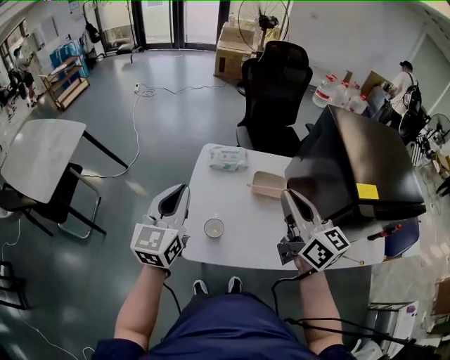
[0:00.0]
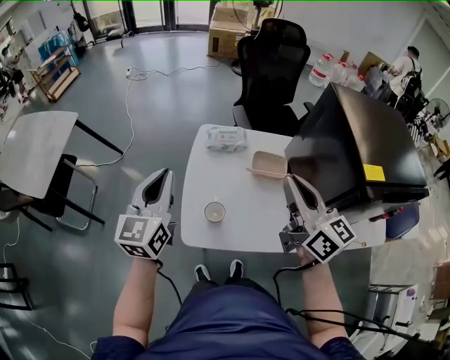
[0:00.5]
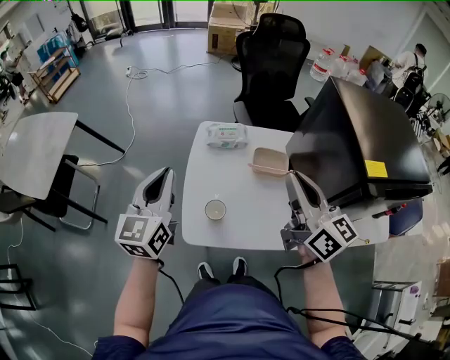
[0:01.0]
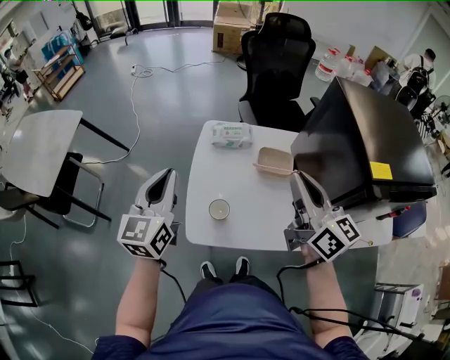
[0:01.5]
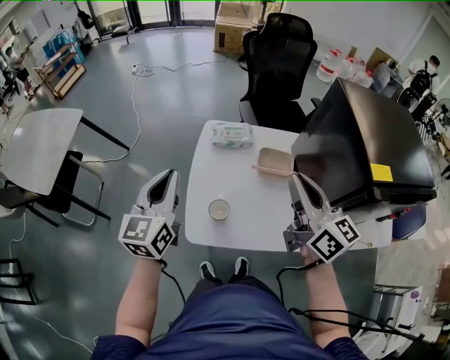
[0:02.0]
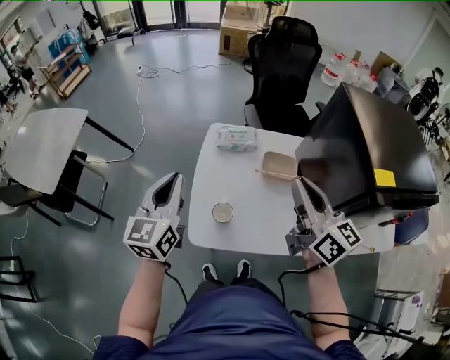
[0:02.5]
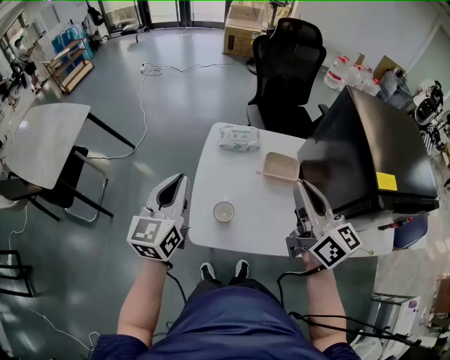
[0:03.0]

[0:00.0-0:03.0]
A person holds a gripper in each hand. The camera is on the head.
0:00.0 to 0:03.0: The grippers move only a little.

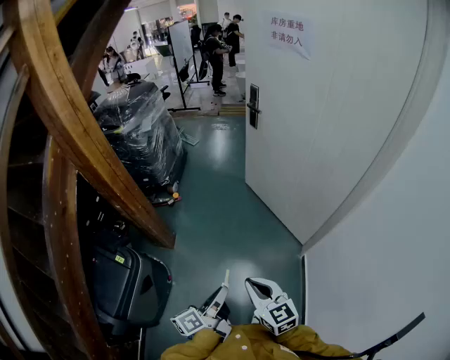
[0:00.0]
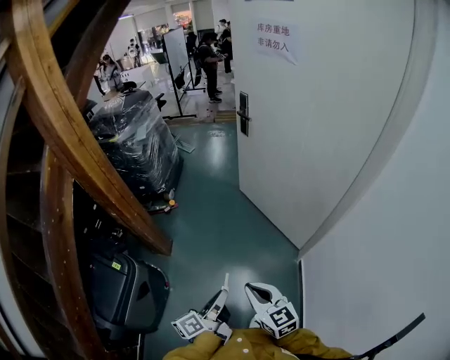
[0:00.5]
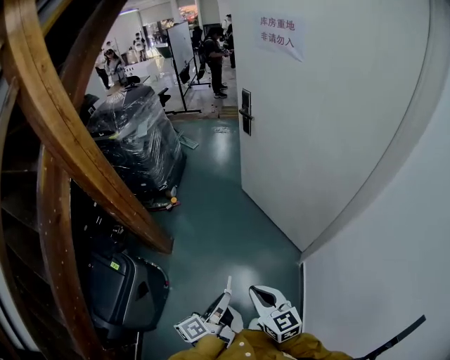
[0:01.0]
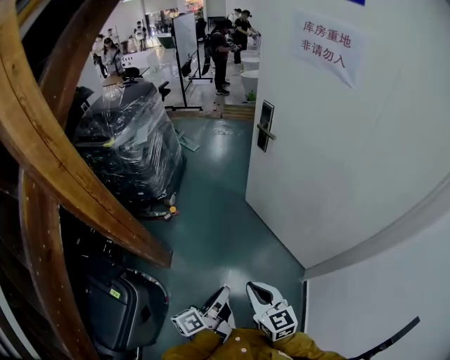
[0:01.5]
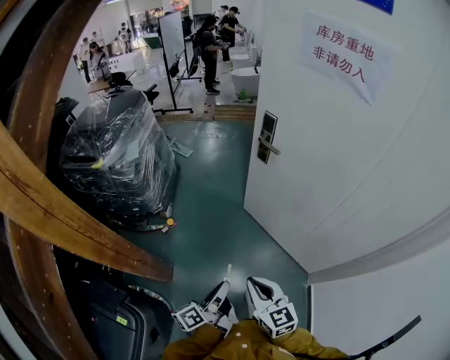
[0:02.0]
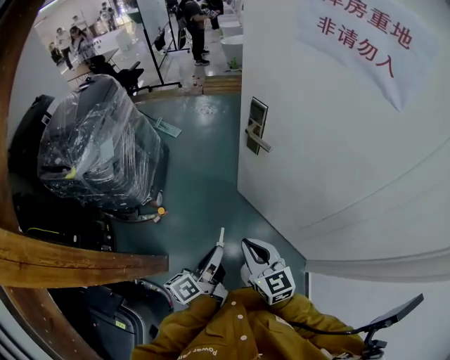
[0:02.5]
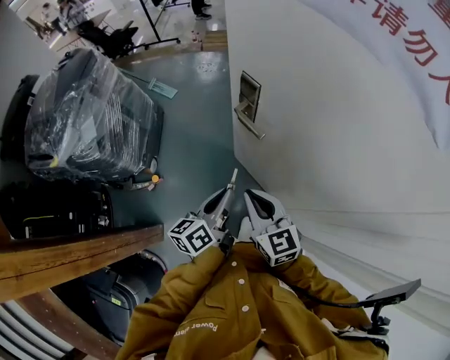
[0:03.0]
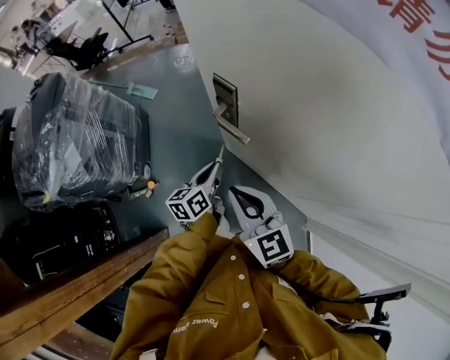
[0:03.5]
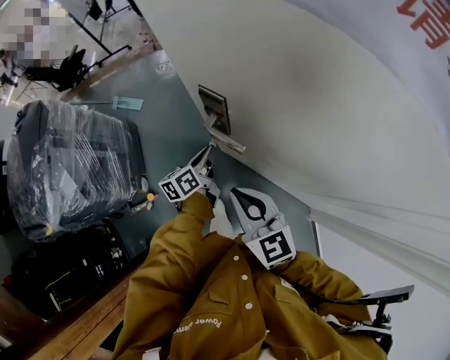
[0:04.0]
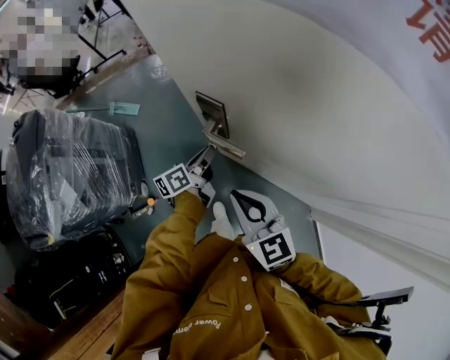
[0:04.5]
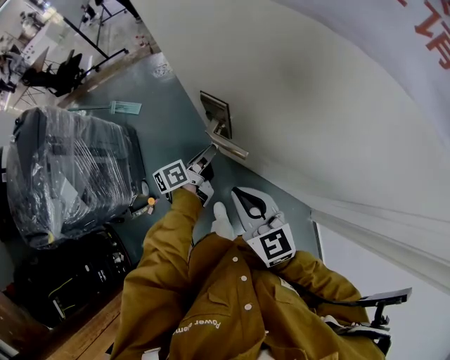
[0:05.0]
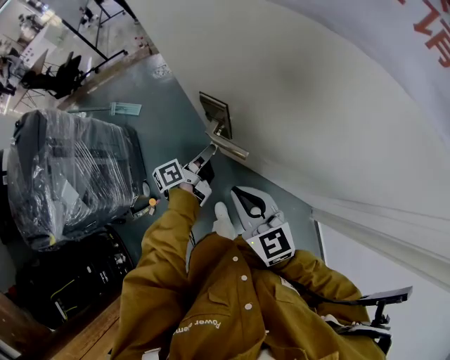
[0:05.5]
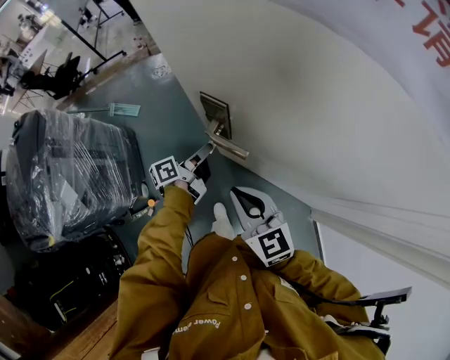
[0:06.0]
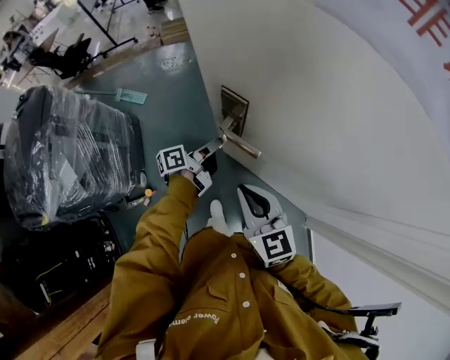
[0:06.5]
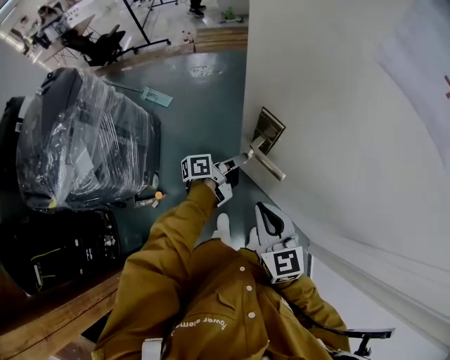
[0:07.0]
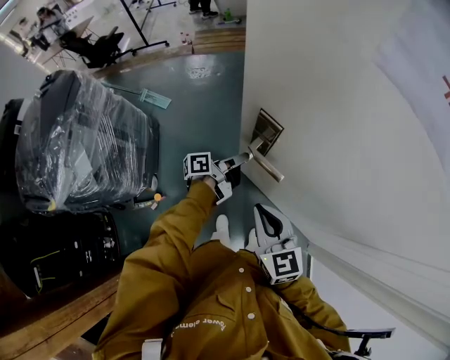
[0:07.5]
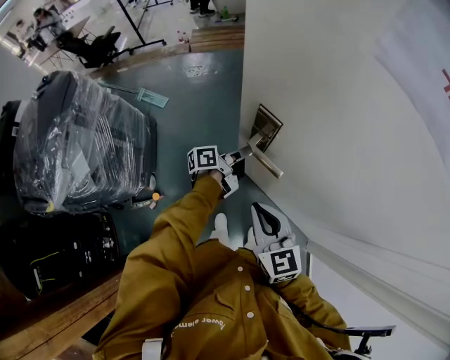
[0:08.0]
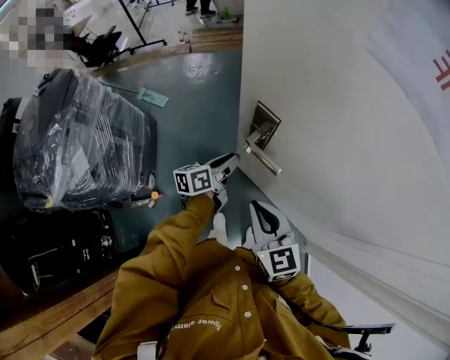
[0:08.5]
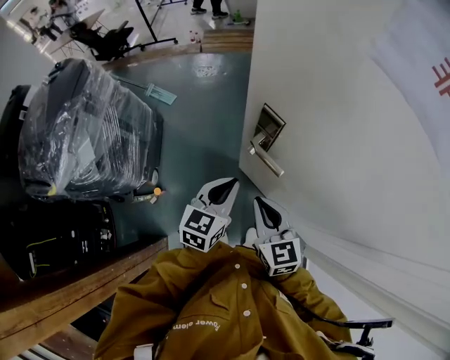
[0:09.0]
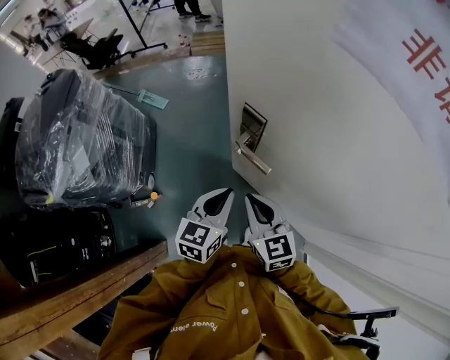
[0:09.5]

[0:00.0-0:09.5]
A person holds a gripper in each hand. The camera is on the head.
0:00.0 to 0:02.0: The grippers both shift forward by about 35 cm.
0:02.0 to 0:04.0: The pair of grippers is taken forward, about 50 cm. The left gripper turns by some 30 degrees.
0:04.0 to 0:05.5: The left gripper rotates approximately 30 degrees.
0:05.5 to 0:07.5: There are only small adjustments of the grippers.
0:07.5 to 0:09.5: The left gripper goes approximately 20 cm backward and upward, and rolls clockwise, seen from behind, by some 60 degrees.

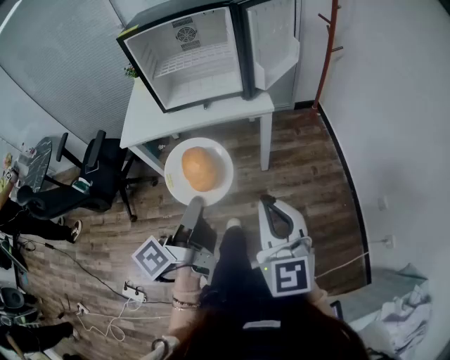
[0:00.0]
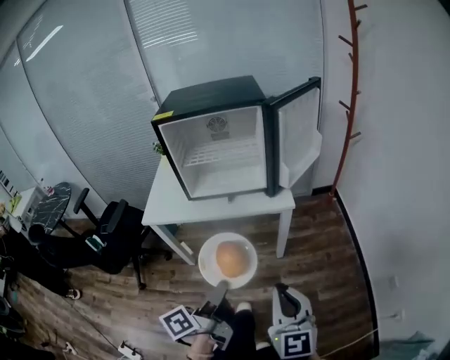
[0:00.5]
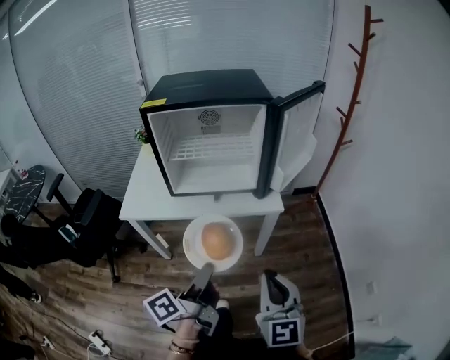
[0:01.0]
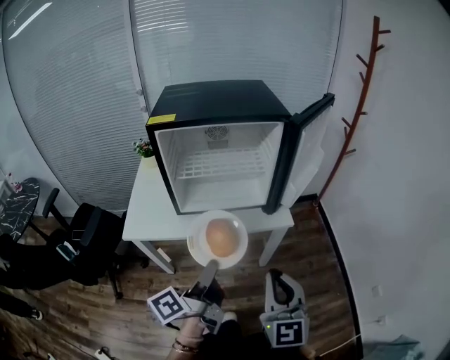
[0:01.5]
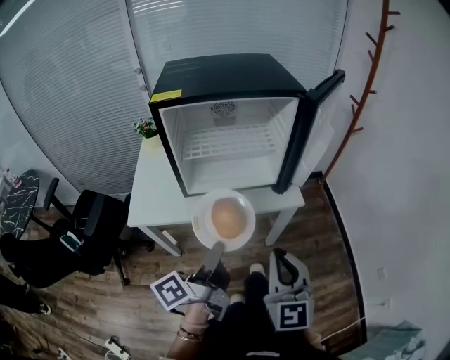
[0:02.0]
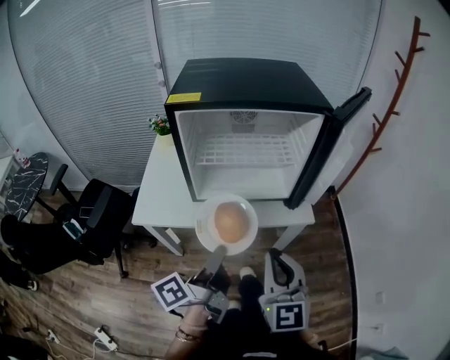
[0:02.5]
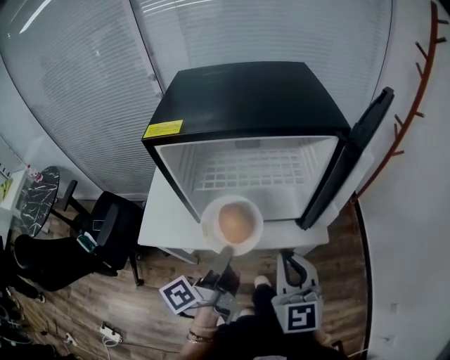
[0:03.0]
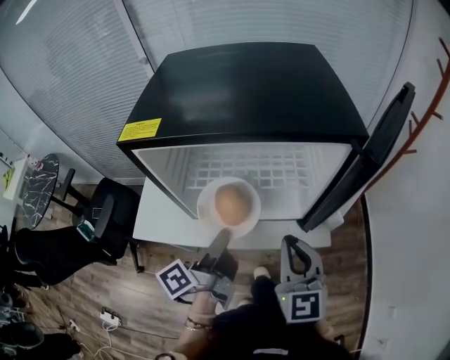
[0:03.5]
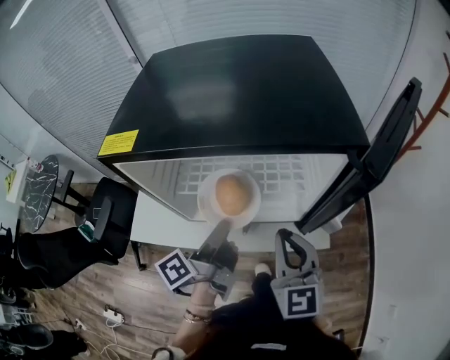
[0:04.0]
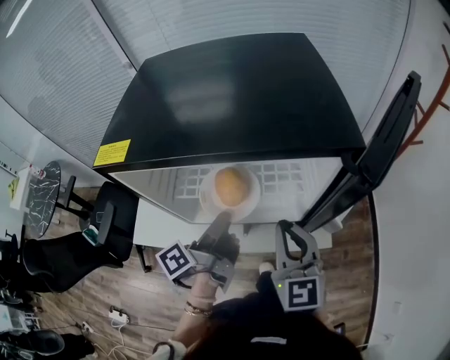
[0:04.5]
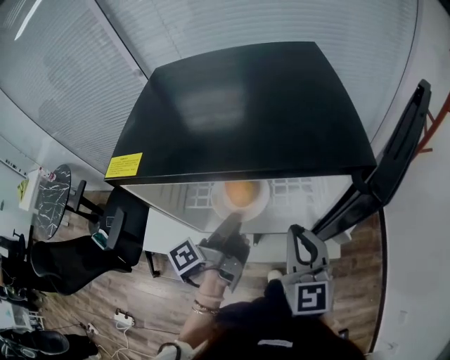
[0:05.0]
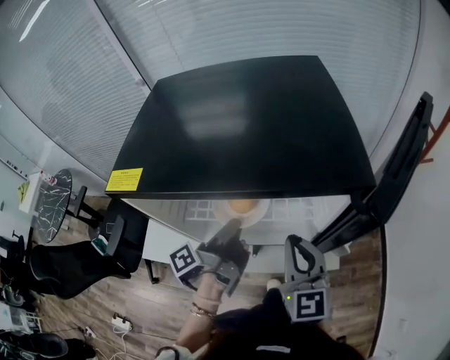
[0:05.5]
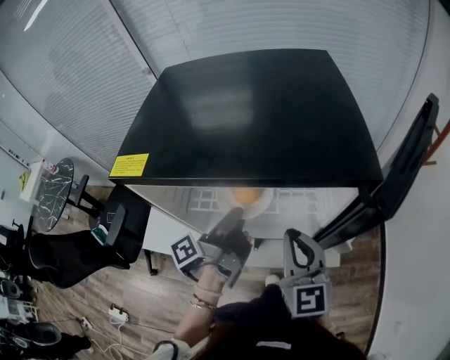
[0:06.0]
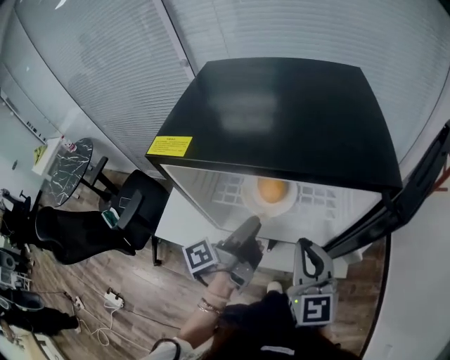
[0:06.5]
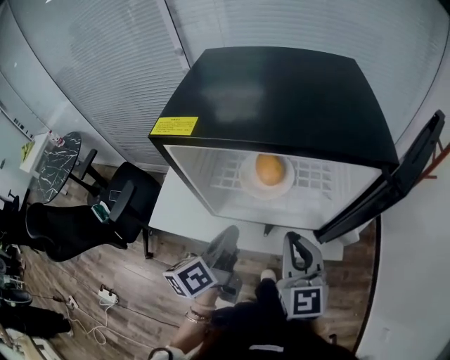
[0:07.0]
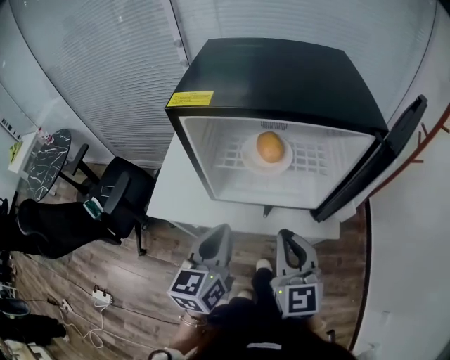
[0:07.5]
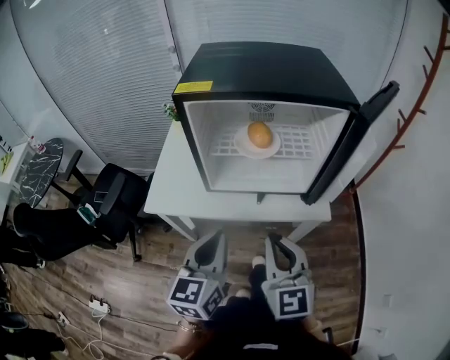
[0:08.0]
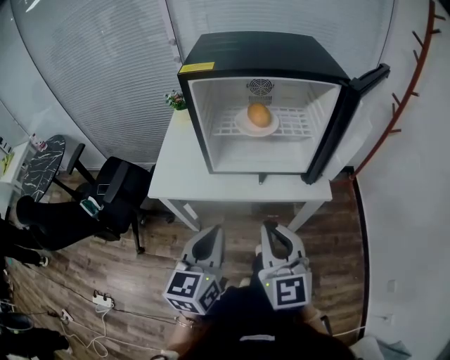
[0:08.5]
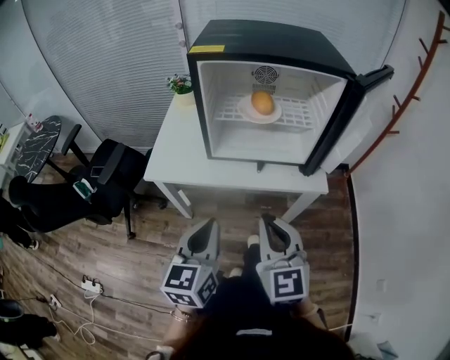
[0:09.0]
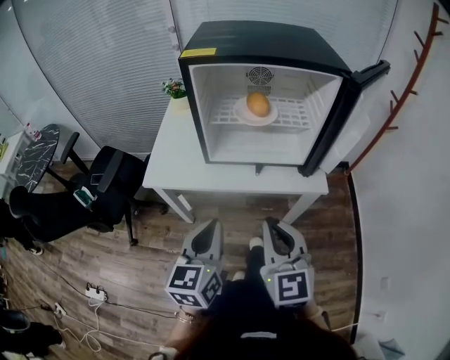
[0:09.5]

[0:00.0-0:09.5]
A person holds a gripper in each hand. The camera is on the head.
0:00.0 to 0:02.0: Both grippers move forward and to the left, some 25 cm.
0:02.0 to 0:04.0: Both grippers move forward, about 25 cm.
0:04.0 to 0:05.5: The left gripper shifts about 5 cm forward.
0:05.5 to 0:07.5: The two grippers go approximately 15 cm backward and to the left. The left gripper rolls clockwise, seen from behind, by some 70 degrees, and opens, then closes again.
0:07.5 to 0:09.5: Both grippers move backward, approximately 15 cm.

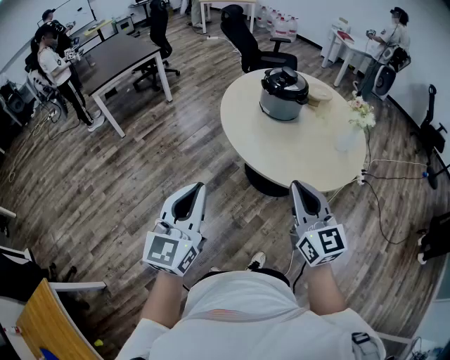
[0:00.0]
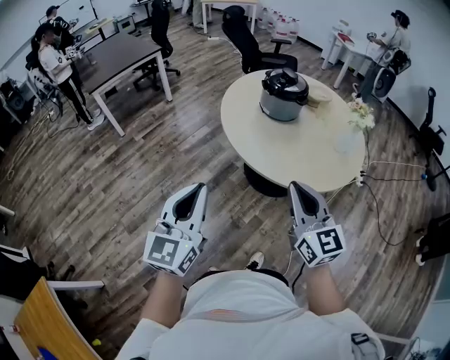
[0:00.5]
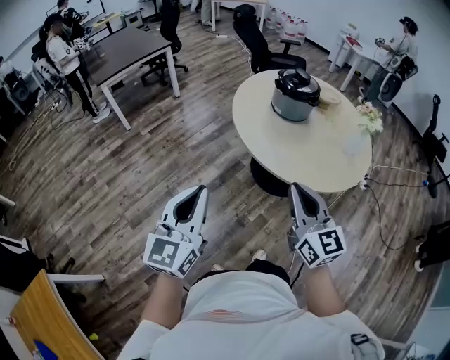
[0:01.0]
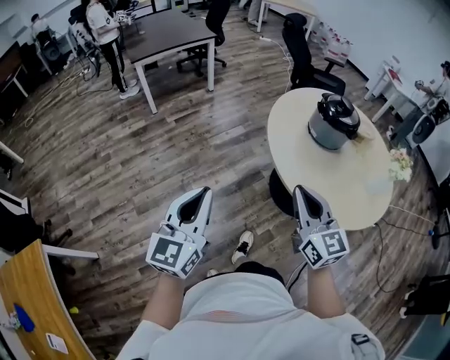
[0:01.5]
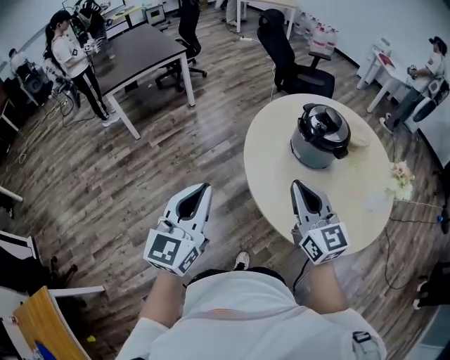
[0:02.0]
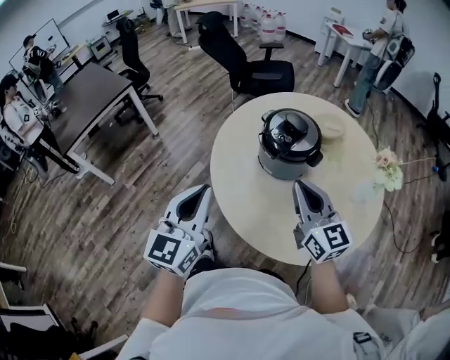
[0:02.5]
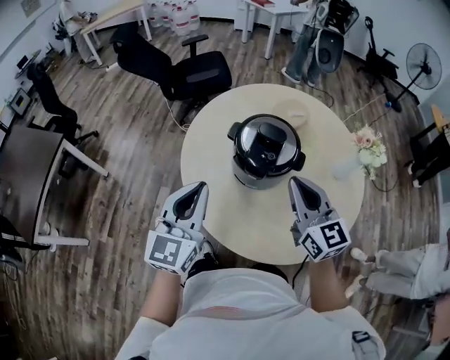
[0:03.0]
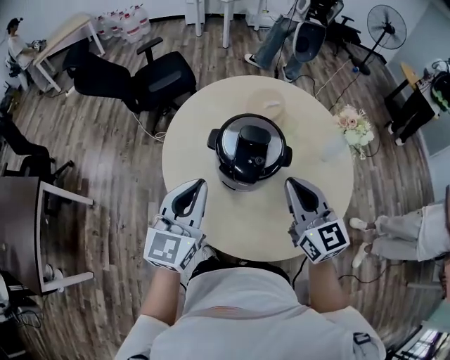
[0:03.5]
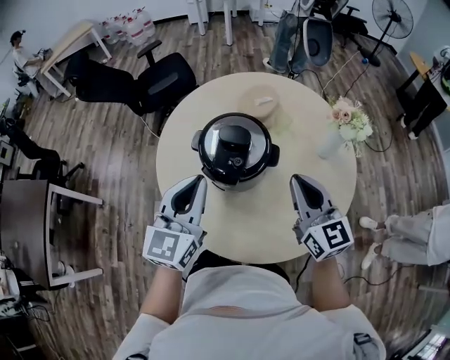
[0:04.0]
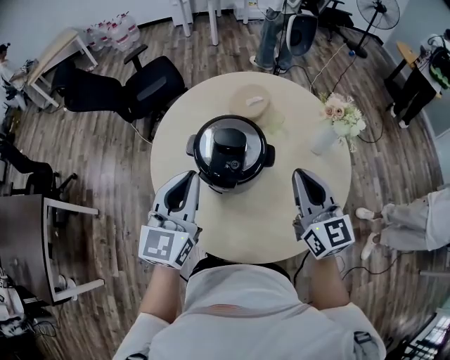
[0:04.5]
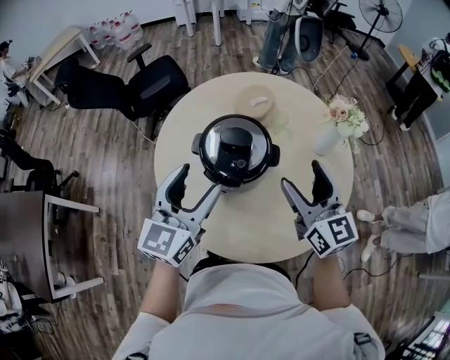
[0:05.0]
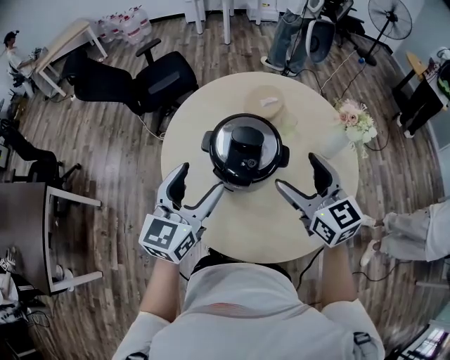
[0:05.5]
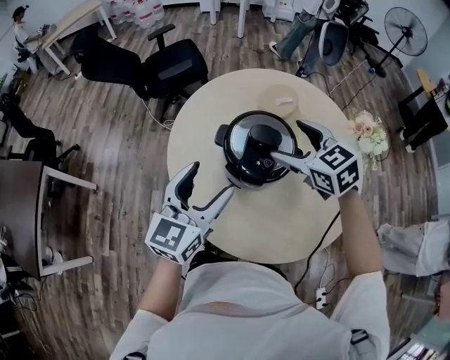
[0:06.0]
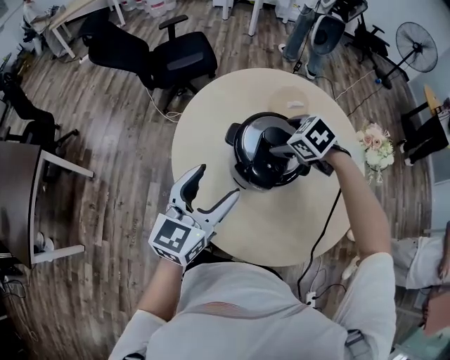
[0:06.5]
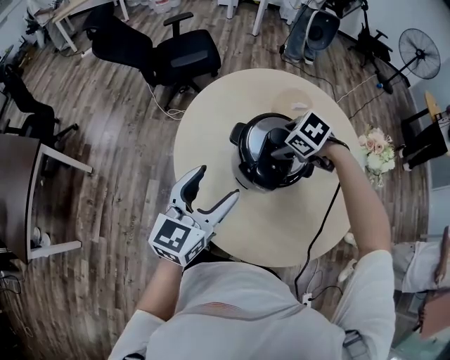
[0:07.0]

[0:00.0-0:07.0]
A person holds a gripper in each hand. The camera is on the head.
0:00.0 to 0:02.0: The grippers both shift forward by about 30 cm.
0:02.0 to 0:03.5: The right gripper moves about 30 cm, and swivels roughly 50 degrees. Meanwhile the left gripper ends up roughly 50 cm from where it was, and changes its angle by roughly 50 degrees.
0:03.5 to 0:05.0: Both grippers travel together to the right, some 10 cm. The left gripper opens, while the right gripper opens up.
0:05.0 to 0:07.0: The left gripper shifts by some 10 cm, while the right gripper moves some 30 cm, and tilts its fingers roughly 70 degrees downward.
